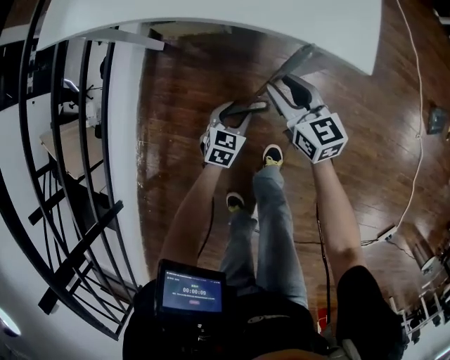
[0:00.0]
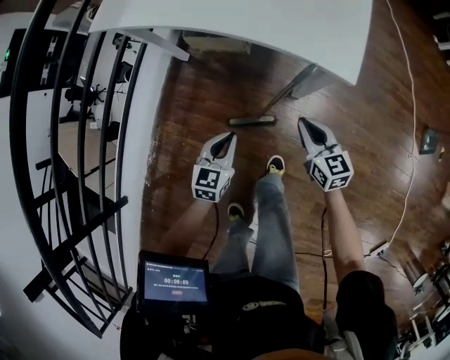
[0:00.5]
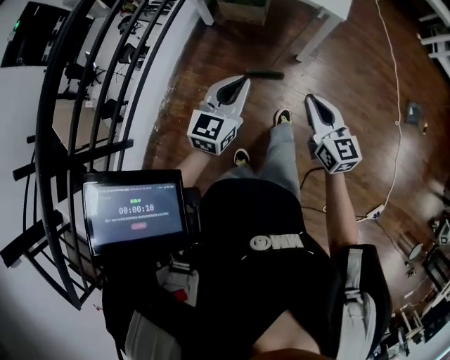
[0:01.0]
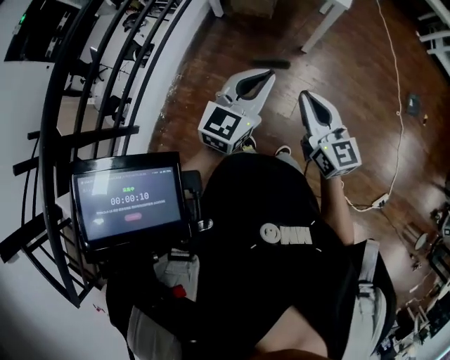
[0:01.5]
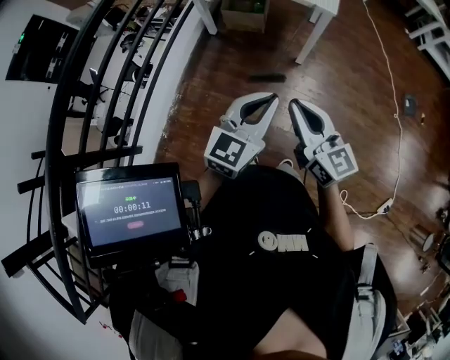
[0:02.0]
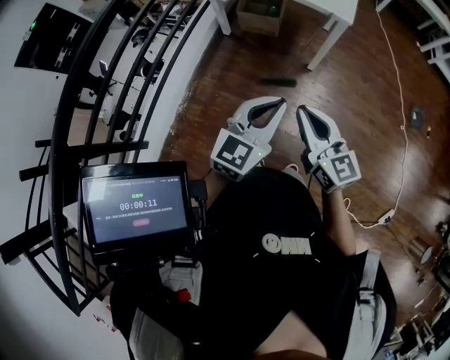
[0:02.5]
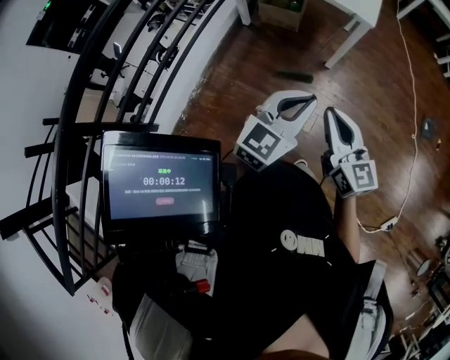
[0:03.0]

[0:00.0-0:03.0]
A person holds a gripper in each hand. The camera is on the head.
0:00.0 to 0:01.5: Both grippers are carried backward, approximately 50 cm. Both grippers move upward, approximately 50 cm. The left gripper angles its fingers upward, by approximately 40 degrees, and closes. The right gripper closes up.
0:01.5 to 0:03.0: The grippers move only a little.

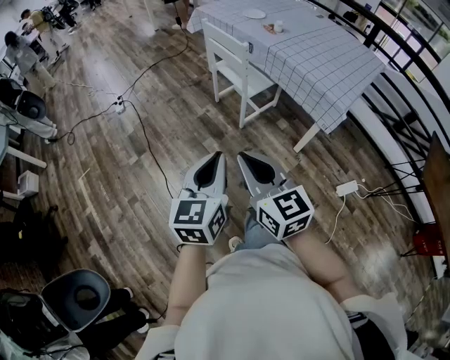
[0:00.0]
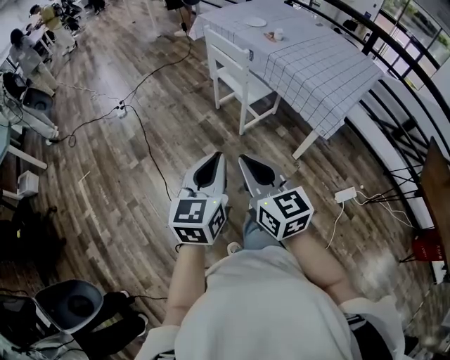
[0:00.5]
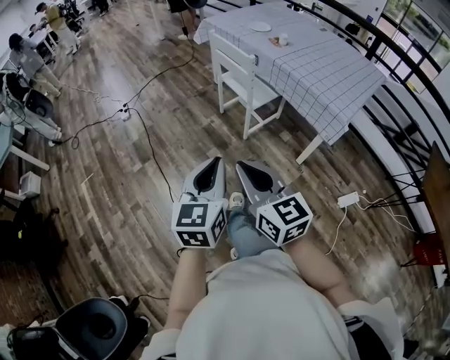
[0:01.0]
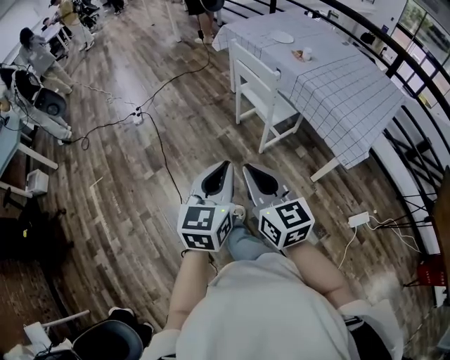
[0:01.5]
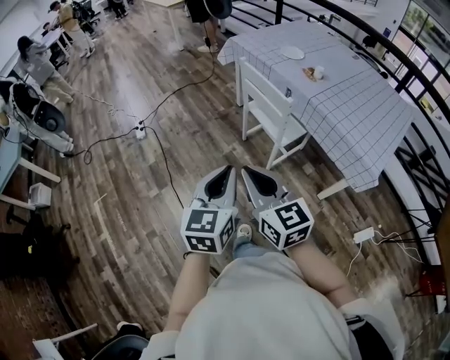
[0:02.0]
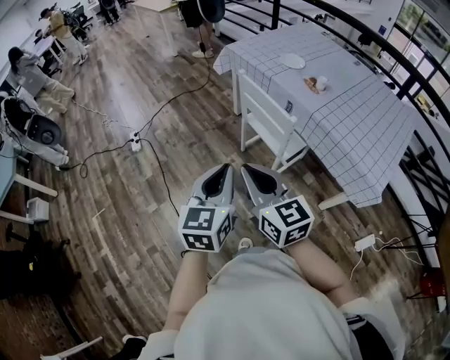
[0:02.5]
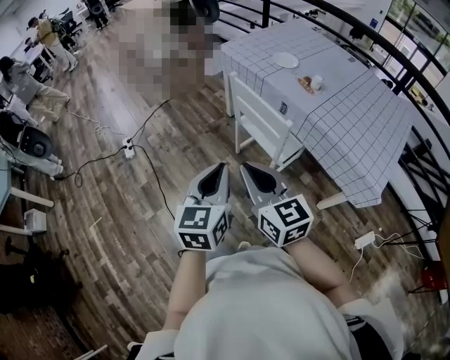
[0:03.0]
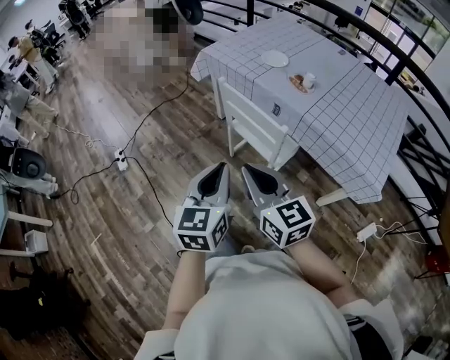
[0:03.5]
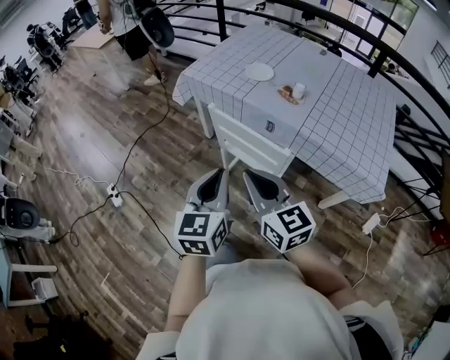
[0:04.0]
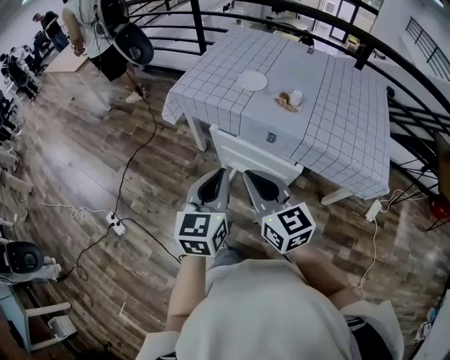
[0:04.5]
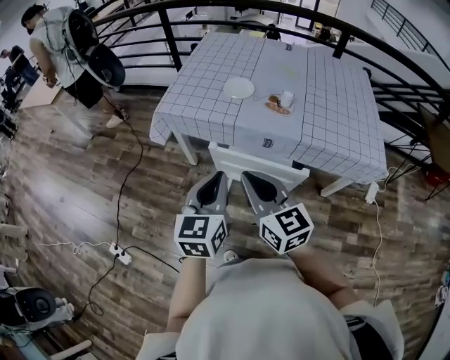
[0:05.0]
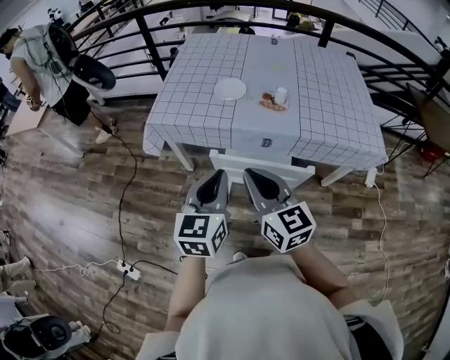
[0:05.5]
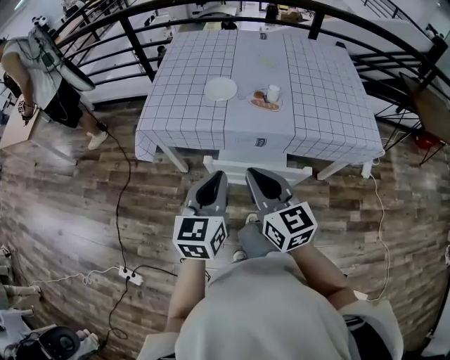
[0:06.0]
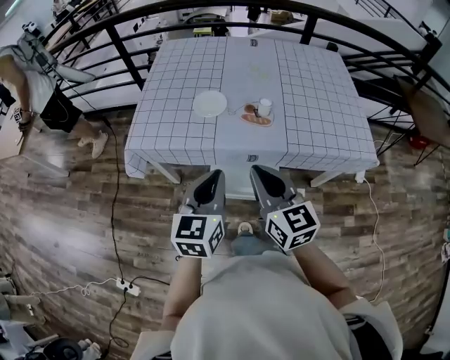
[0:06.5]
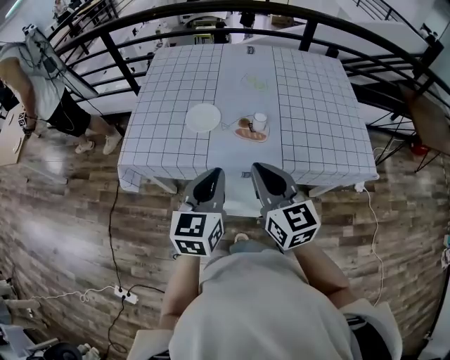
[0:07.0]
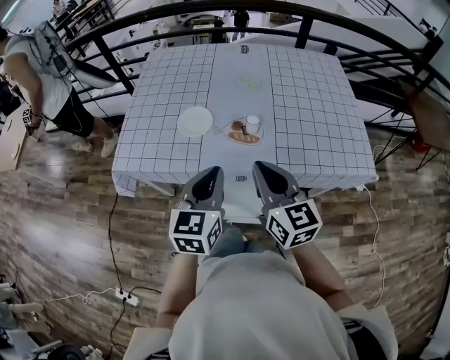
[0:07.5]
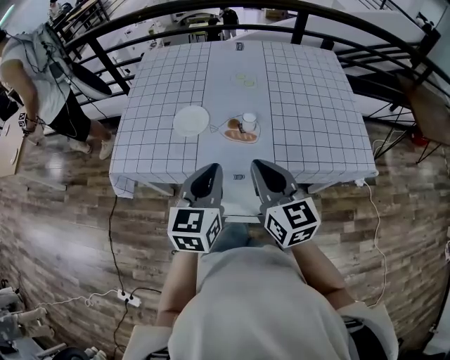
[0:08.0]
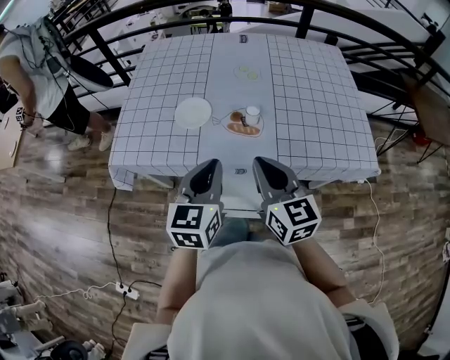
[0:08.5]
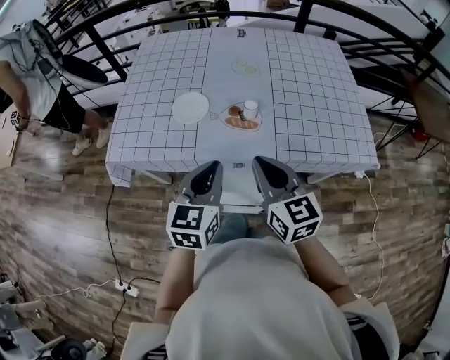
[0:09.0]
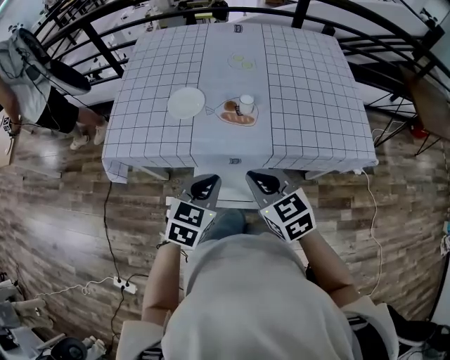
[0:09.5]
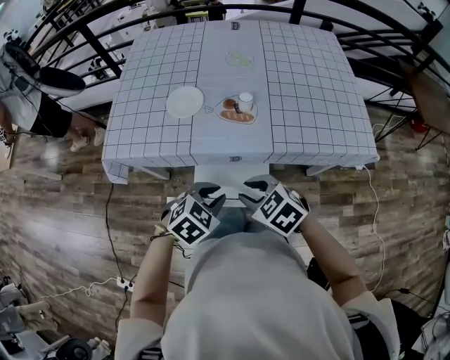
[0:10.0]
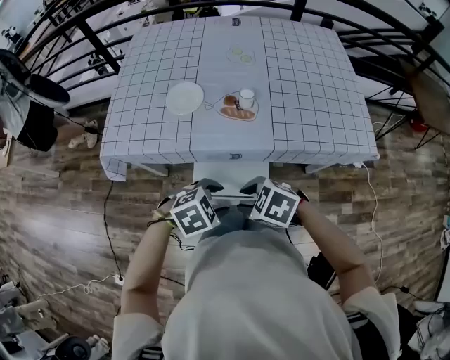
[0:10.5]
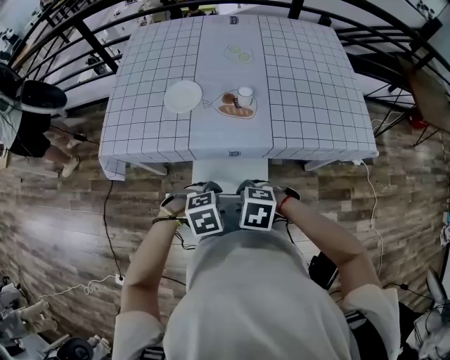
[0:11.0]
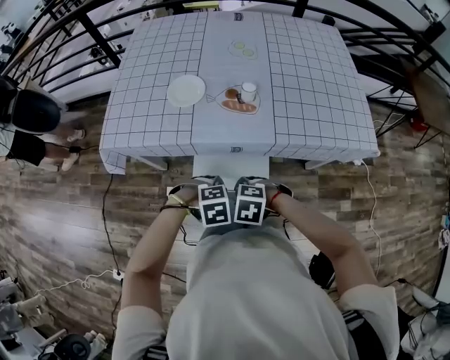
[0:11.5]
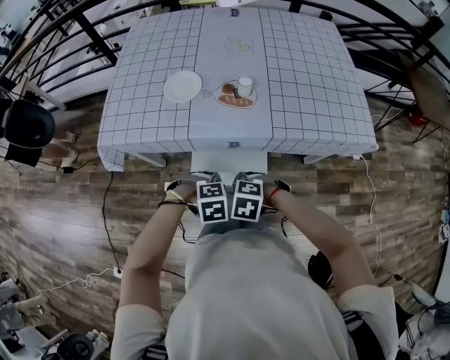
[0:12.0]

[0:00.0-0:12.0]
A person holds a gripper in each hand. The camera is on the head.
0:00.0 to 0:02.0: The left gripper shifts approximately 20 cm forward, while the right gripper moves forward and to the left, roughly 25 cm.
0:02.0 to 0:04.0: The two grippers go about 30 cm forward.
0:04.0 to 0:06.0: The left gripper ends up about 25 cm from where it was, and rotates roughly 30 degrees; the right gripper ends up roughly 20 cm from where it was, and swivels about 30 degrees.
0:06.0 to 0:08.0: Both grippers travel together forward and to the right, about 20 cm.
0:08.0 to 0:10.0: The grippers both shift downward and backward by some 15 cm. The left gripper tilts its fingers some 40 degrees downward. The right gripper tips its fingers downward by about 40 degrees, and opens its fingers.
0:10.0 to 0:12.0: Both grippers travel together downward, approximately 10 cm. The right gripper rotates about 30 degrees. Meanwhile the left gripper swivels roughly 40 degrees, and opens and closes again.

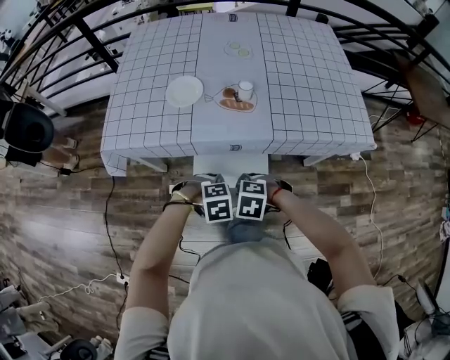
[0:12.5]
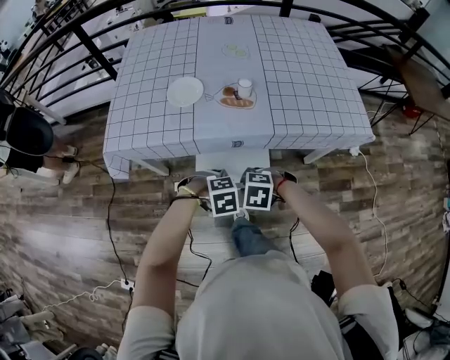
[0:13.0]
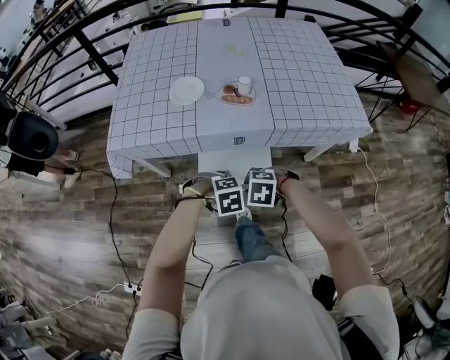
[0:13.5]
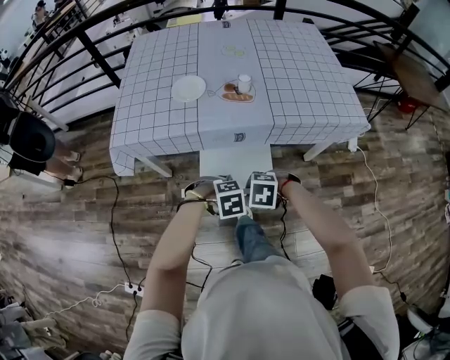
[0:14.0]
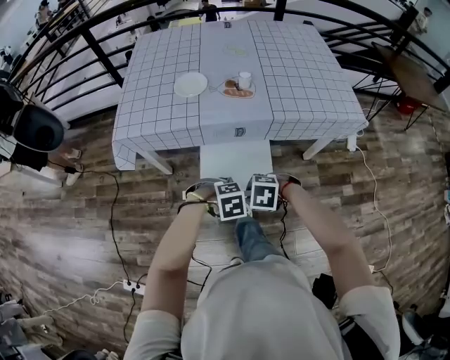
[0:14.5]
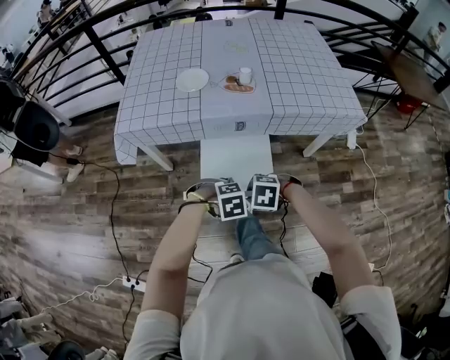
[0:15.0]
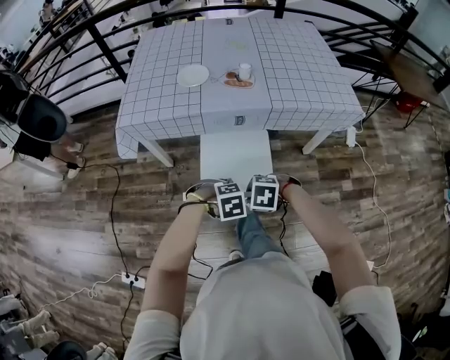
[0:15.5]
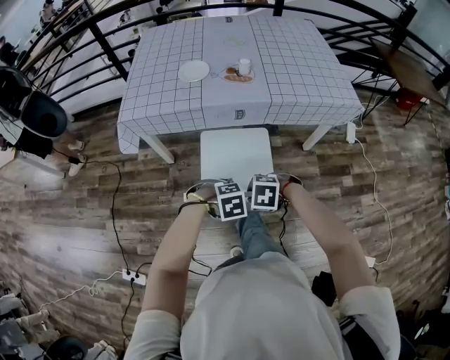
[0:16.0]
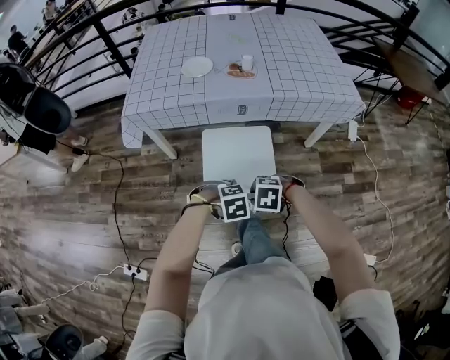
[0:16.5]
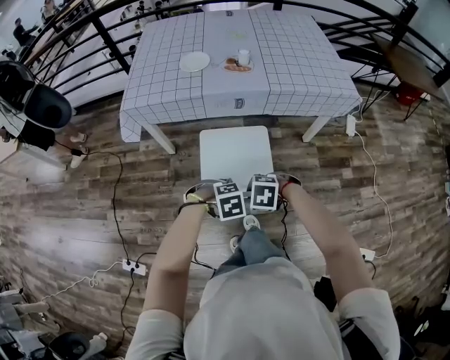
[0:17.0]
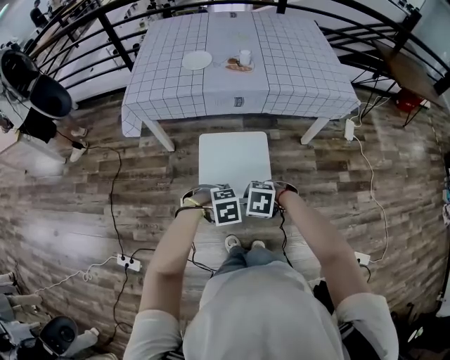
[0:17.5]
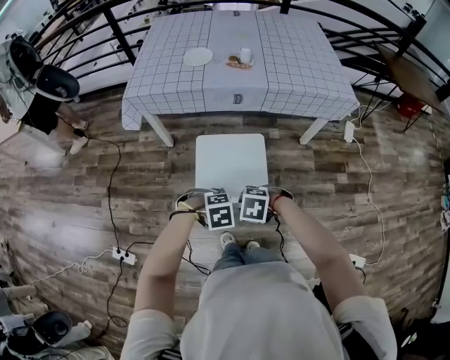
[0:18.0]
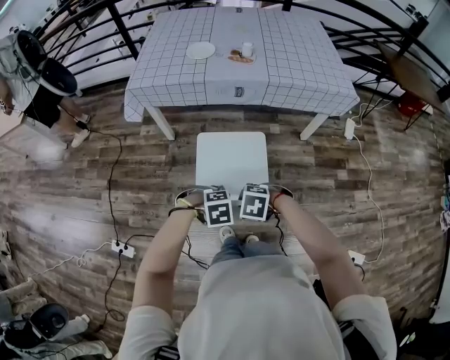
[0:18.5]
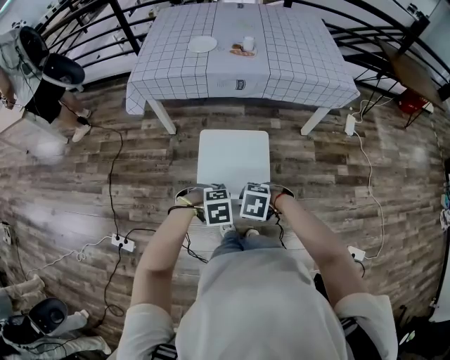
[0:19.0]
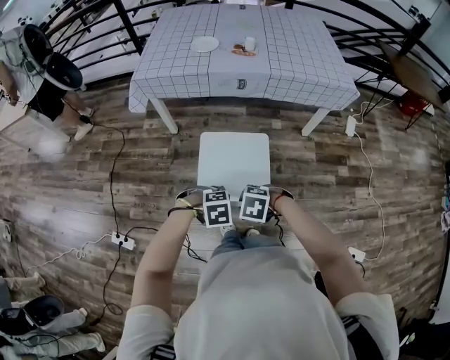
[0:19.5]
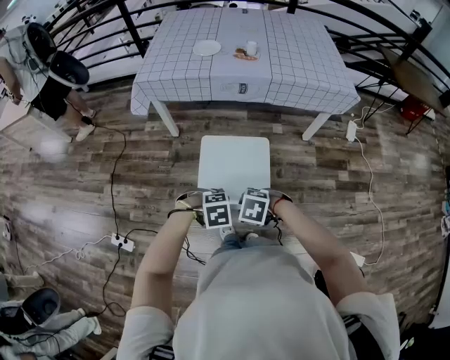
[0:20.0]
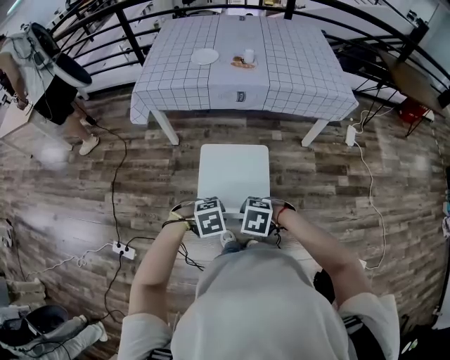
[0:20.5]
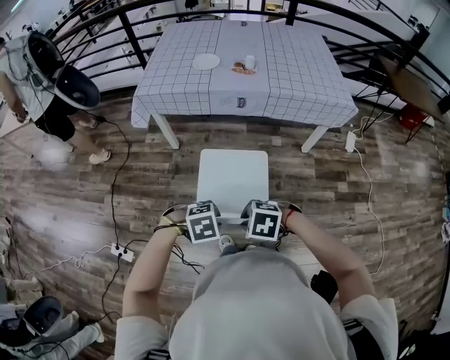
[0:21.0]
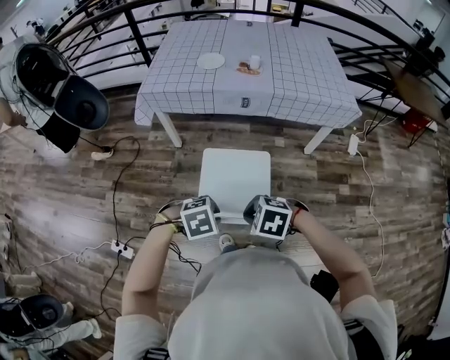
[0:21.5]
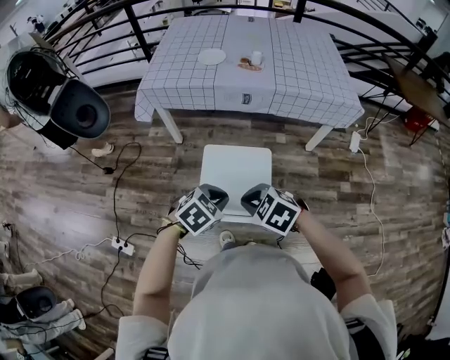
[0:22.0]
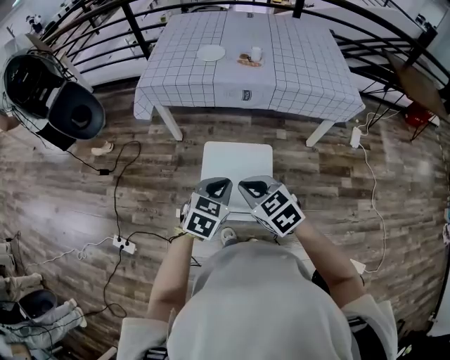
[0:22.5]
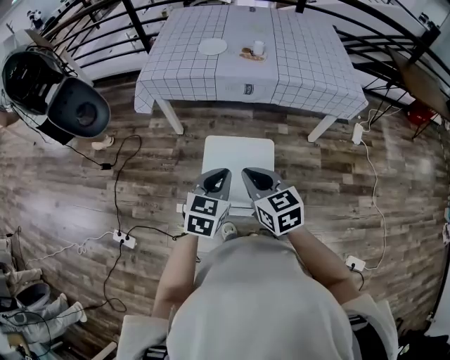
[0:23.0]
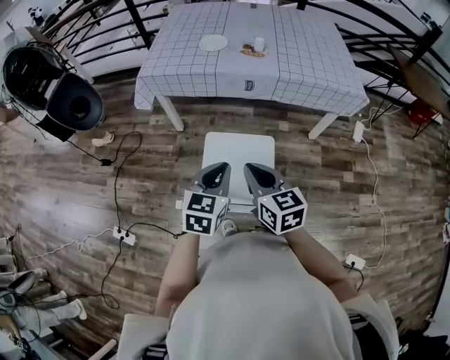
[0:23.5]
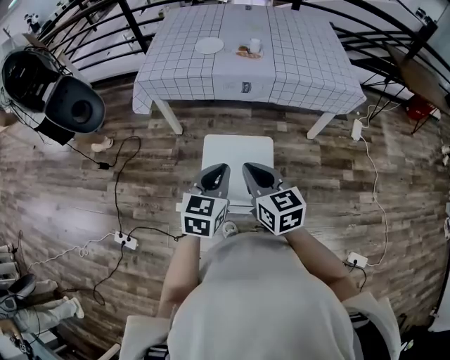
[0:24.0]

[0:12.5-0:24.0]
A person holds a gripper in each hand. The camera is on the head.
0:12.5 to 0:14.5: The right gripper shifts by about 10 cm. The left gripper moves approximately 10 cm.
0:14.5 to 0:16.5: The right gripper moves some 15 cm. Meanwhile the left gripper moves approximately 15 cm.
0:16.5 to 0:18.5: The right gripper ends up some 15 cm from where it was, while the left gripper ends up roughly 15 cm from where it was.
0:18.5 to 0:20.0: The left gripper shifts by some 5 cm. The right gripper moves some 5 cm.
0:20.0 to 0:22.0: The grippers both shift upward by some 10 cm. The left gripper turns by roughly 40 degrees. The right gripper swivels roughly 20 degrees, and closes up.
0:22.0 to 0:24.0: The right gripper heads upward and forward, covering approximately 10 cm, and points its fingers some 30 degrees further upward, while the left gripper heads upward, covering roughly 5 cm, and changes its angle by some 40 degrees.
